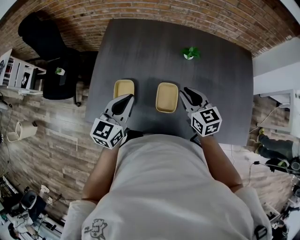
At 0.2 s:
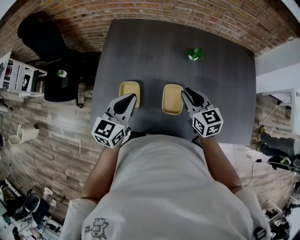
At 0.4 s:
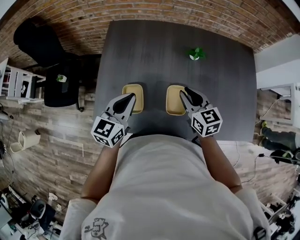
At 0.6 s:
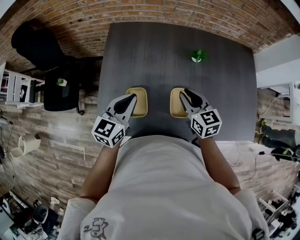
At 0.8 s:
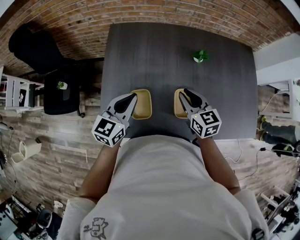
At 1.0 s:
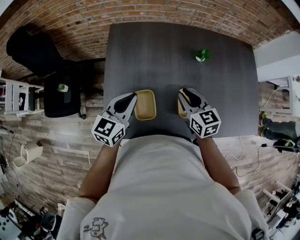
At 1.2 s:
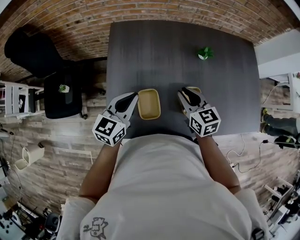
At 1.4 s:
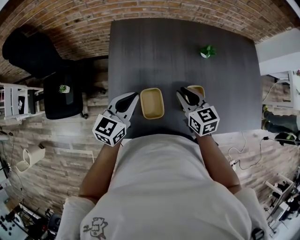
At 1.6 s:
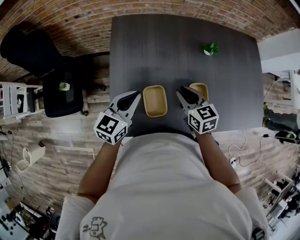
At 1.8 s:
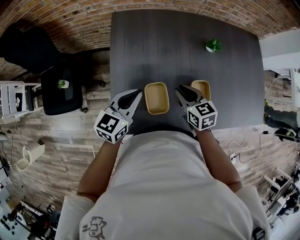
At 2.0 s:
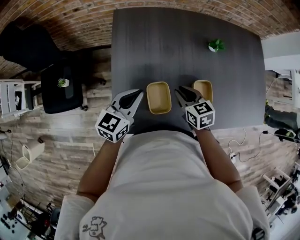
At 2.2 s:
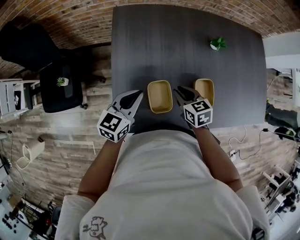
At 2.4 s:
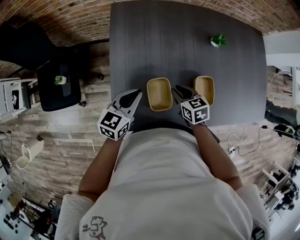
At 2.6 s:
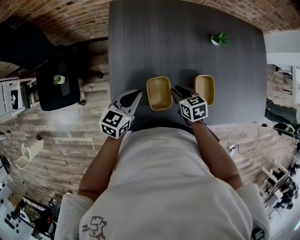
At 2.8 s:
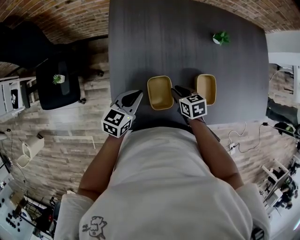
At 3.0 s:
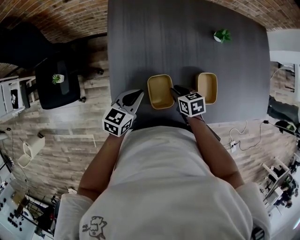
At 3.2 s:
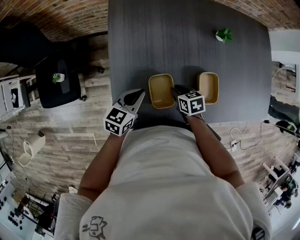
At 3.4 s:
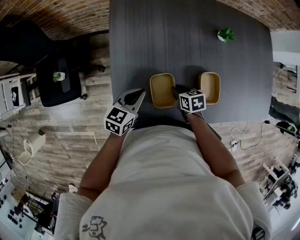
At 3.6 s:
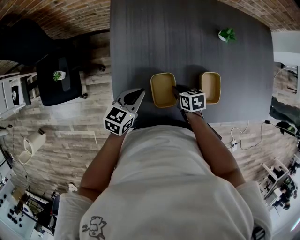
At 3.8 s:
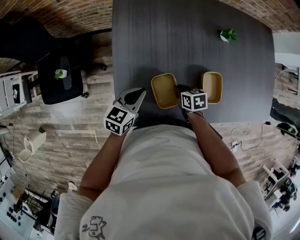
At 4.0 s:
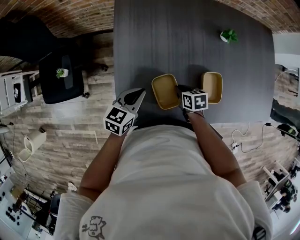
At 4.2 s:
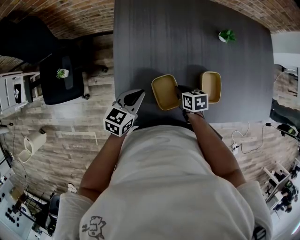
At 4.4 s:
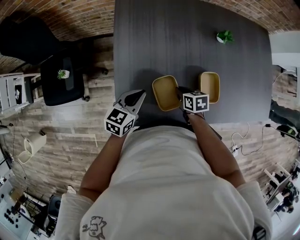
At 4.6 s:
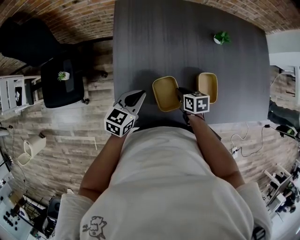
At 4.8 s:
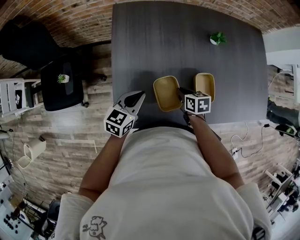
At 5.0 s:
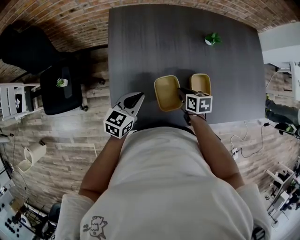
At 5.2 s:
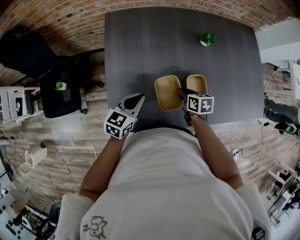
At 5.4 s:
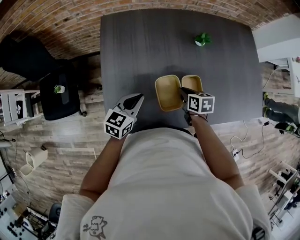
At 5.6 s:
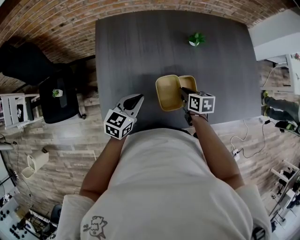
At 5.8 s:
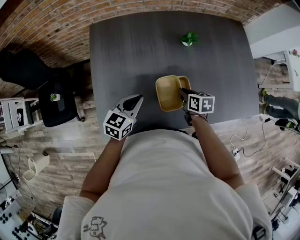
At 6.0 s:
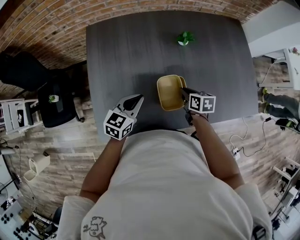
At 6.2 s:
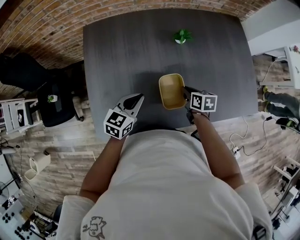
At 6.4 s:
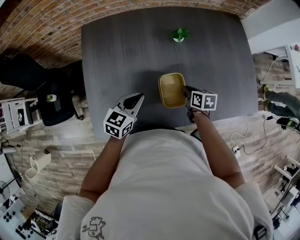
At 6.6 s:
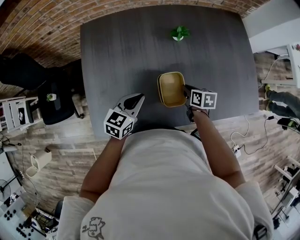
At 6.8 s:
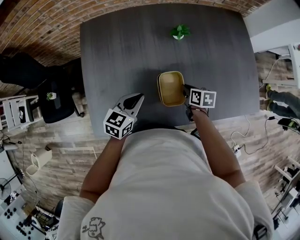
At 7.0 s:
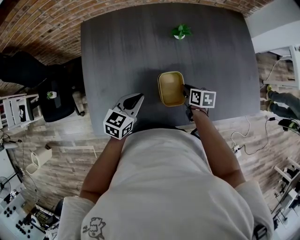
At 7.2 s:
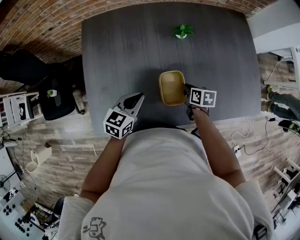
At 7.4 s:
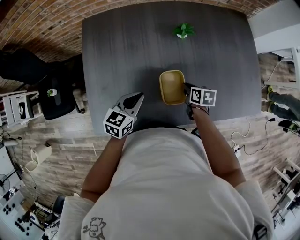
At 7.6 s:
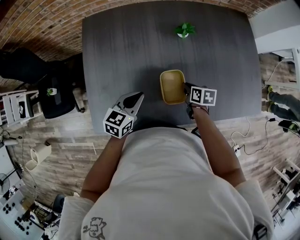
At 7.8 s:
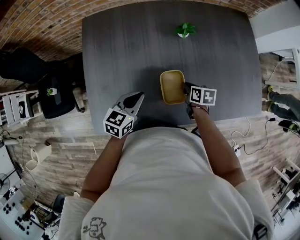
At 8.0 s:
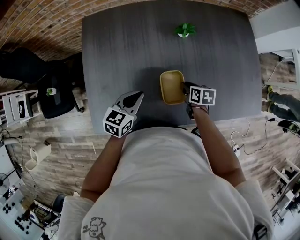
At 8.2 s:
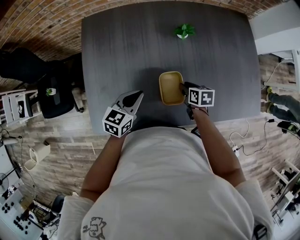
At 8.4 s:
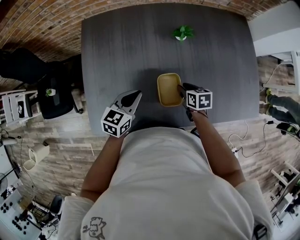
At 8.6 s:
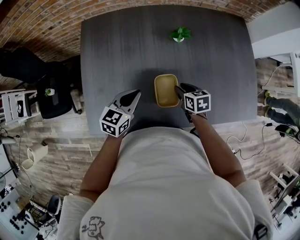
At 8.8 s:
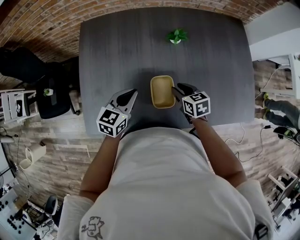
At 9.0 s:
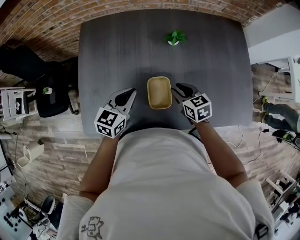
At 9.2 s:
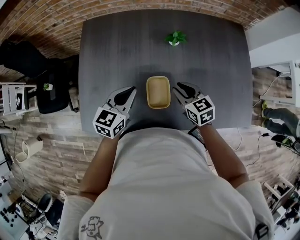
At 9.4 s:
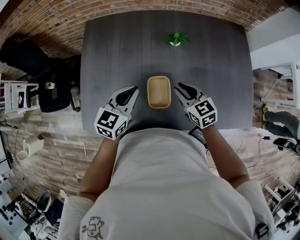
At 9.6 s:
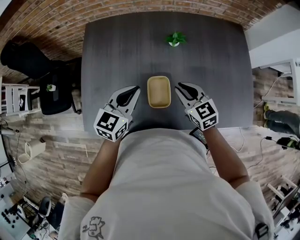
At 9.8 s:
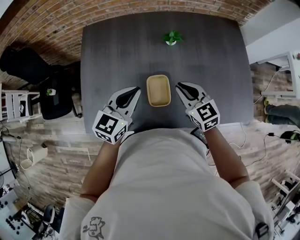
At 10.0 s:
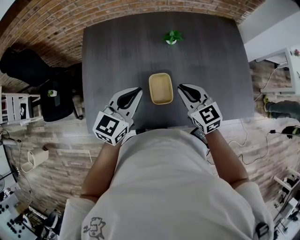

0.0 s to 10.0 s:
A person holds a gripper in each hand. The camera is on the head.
0.0 to 1.4 s: The right gripper shifts about 15 cm to the left. The left gripper shifts roughly 15 cm to the left and forward.
1.4 to 2.8 s: Both grippers move downward, approximately 15 cm. The right gripper swivels roughly 30 degrees.
2.8 to 4.2 s: The grippers stay close to where they were, moving slightly.
4.2 to 5.8 s: The left gripper travels to the right by some 15 cm; the right gripper goes approximately 20 cm to the right and upward.
5.8 to 7.2 s: The right gripper shifts about 10 cm to the right and downward. The left gripper moves to the right, roughly 5 cm.
7.2 to 8.6 s: The right gripper opens up.
8.6 to 10.0 s: The grippers both shift upward by about 15 cm. The right gripper turns by approximately 40 degrees, and closes up.

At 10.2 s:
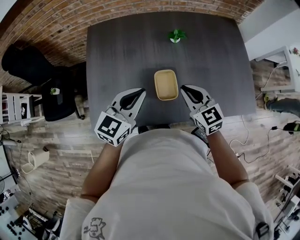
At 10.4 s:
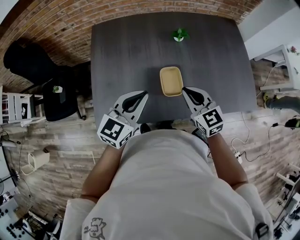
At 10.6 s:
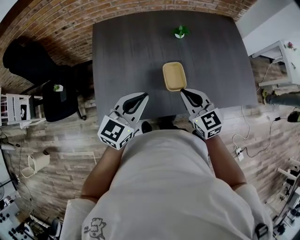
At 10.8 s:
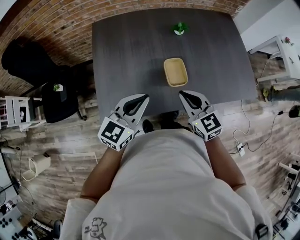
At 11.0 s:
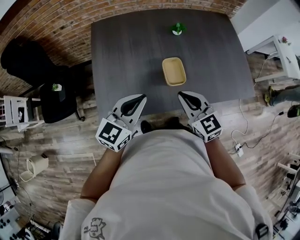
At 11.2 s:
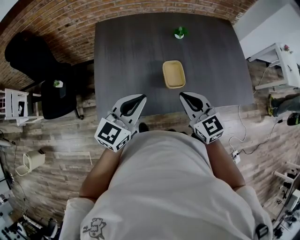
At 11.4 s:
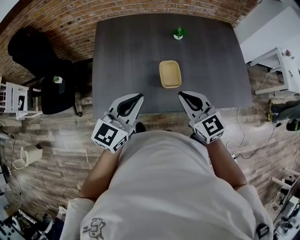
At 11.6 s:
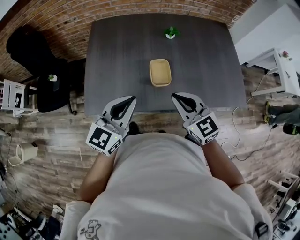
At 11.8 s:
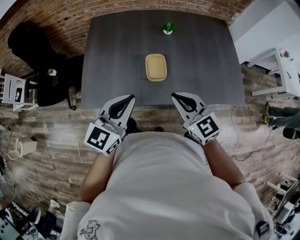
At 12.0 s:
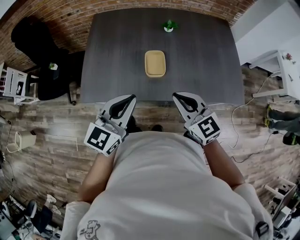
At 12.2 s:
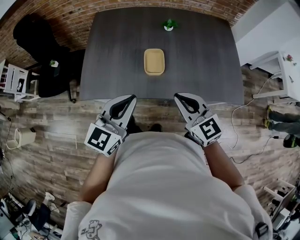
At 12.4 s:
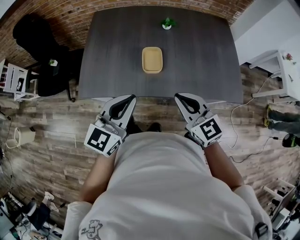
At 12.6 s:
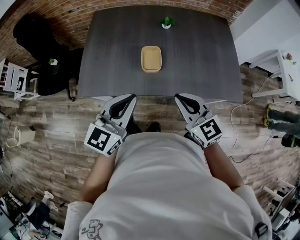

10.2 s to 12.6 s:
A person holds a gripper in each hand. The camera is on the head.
10.2 to 11.4 s: The left gripper shifts about 10 cm backward. The right gripper heads backward and upward, covering approximately 15 cm.
11.4 to 12.6 s: The right gripper heads to the right and backward, covering approximately 15 cm; the left gripper shifts some 15 cm backward and to the right.

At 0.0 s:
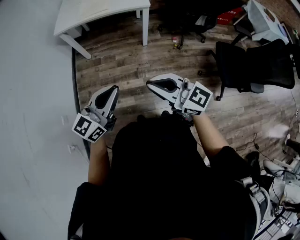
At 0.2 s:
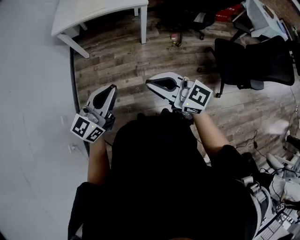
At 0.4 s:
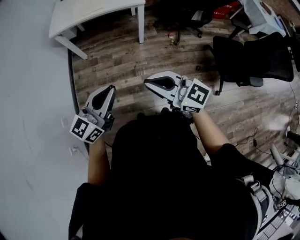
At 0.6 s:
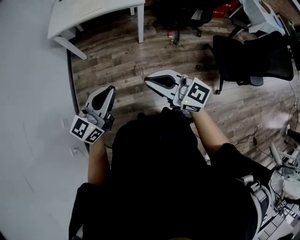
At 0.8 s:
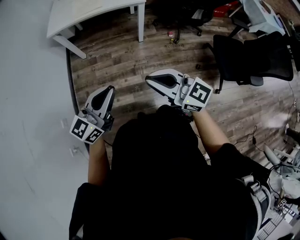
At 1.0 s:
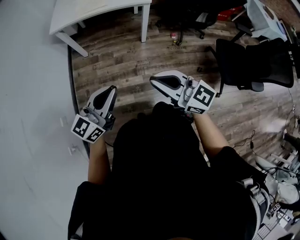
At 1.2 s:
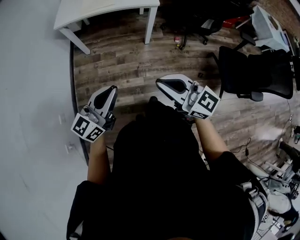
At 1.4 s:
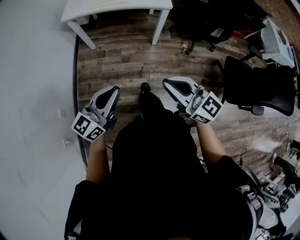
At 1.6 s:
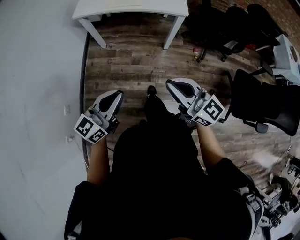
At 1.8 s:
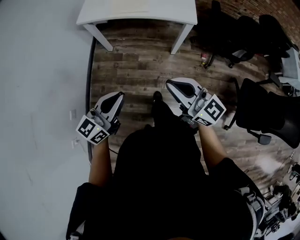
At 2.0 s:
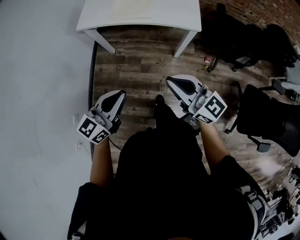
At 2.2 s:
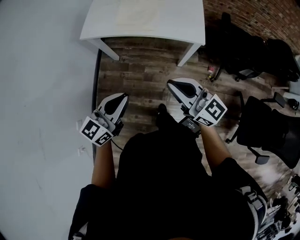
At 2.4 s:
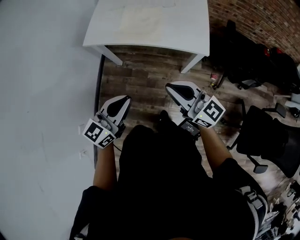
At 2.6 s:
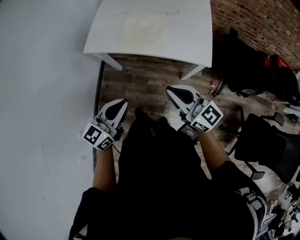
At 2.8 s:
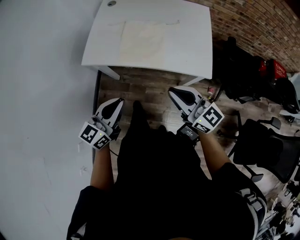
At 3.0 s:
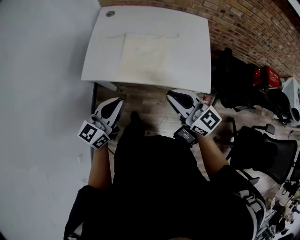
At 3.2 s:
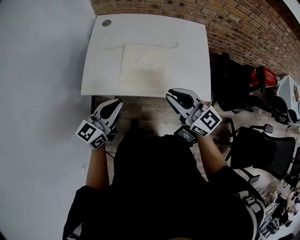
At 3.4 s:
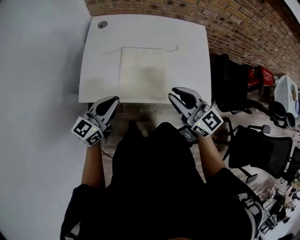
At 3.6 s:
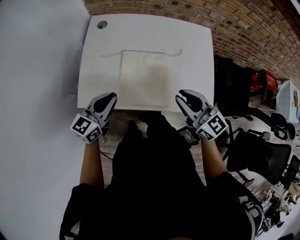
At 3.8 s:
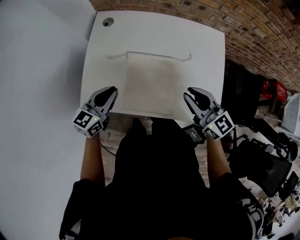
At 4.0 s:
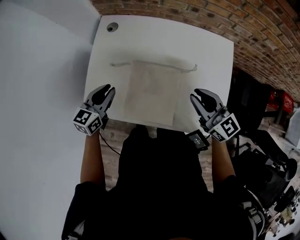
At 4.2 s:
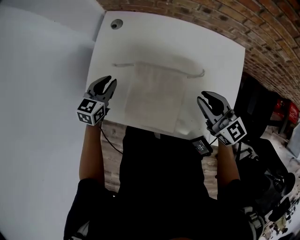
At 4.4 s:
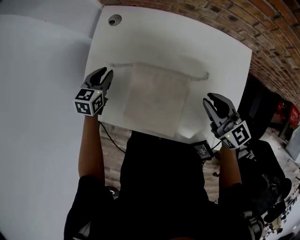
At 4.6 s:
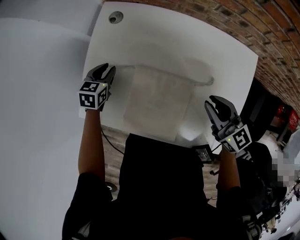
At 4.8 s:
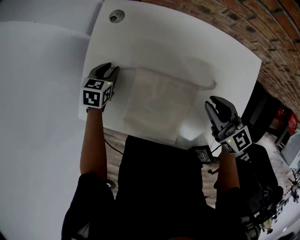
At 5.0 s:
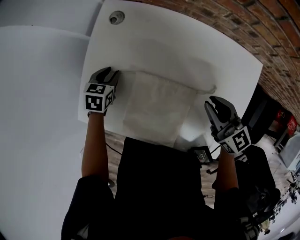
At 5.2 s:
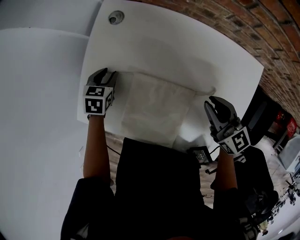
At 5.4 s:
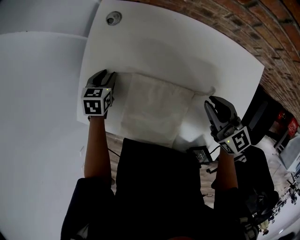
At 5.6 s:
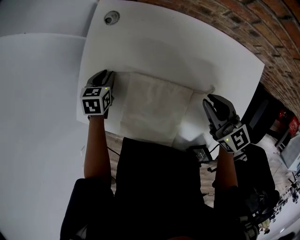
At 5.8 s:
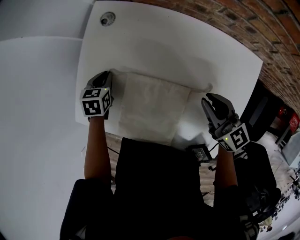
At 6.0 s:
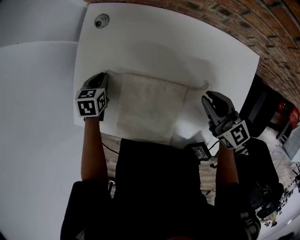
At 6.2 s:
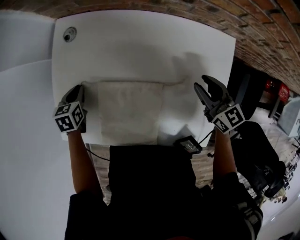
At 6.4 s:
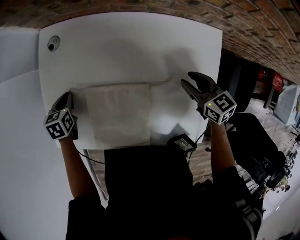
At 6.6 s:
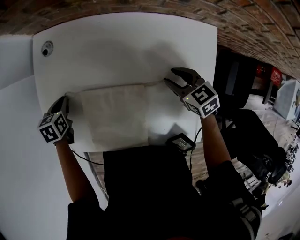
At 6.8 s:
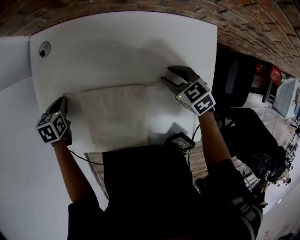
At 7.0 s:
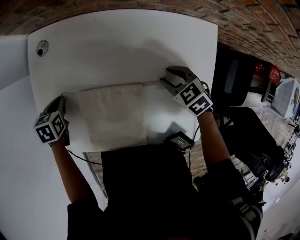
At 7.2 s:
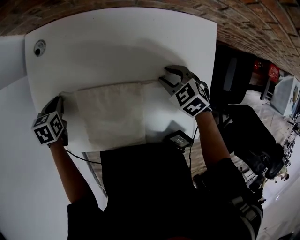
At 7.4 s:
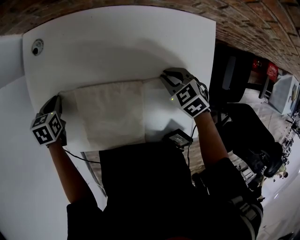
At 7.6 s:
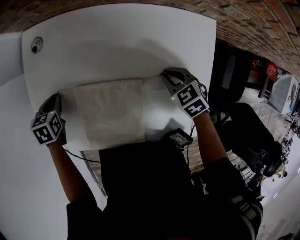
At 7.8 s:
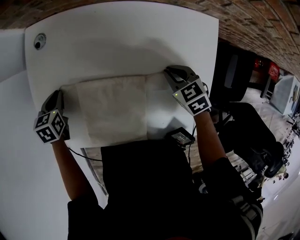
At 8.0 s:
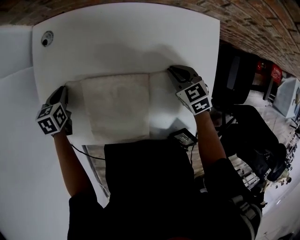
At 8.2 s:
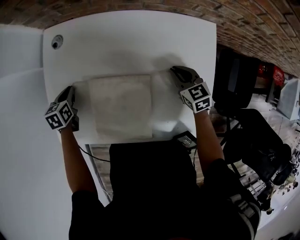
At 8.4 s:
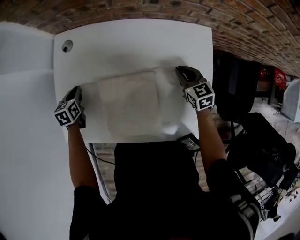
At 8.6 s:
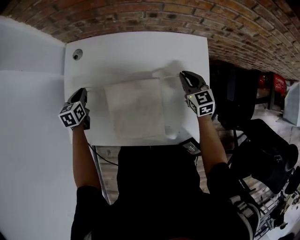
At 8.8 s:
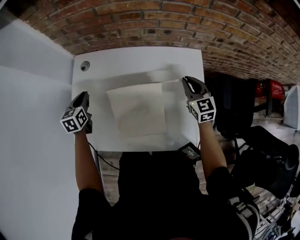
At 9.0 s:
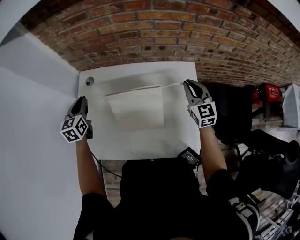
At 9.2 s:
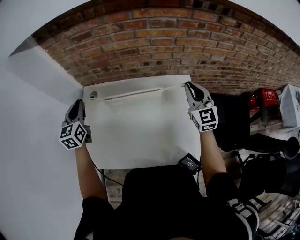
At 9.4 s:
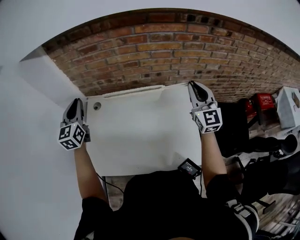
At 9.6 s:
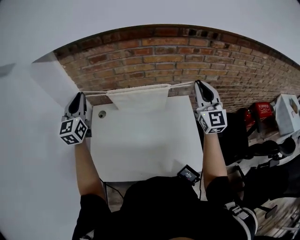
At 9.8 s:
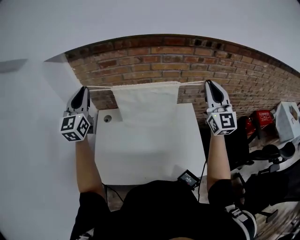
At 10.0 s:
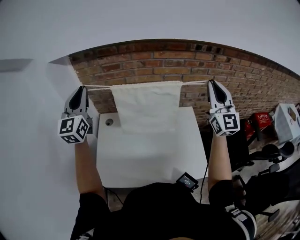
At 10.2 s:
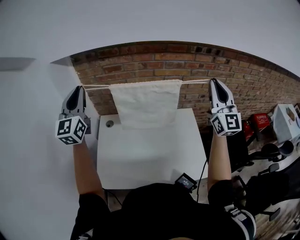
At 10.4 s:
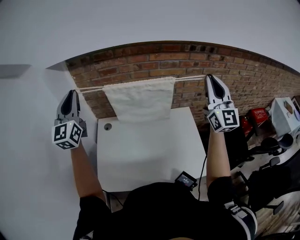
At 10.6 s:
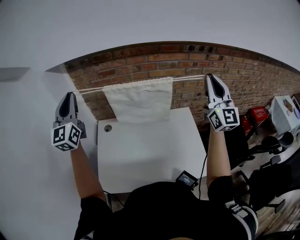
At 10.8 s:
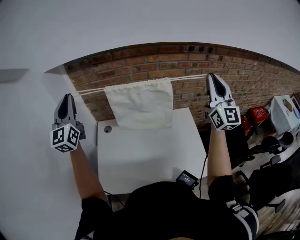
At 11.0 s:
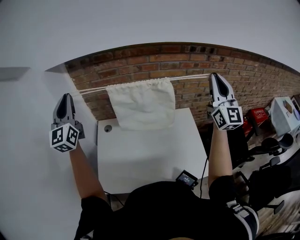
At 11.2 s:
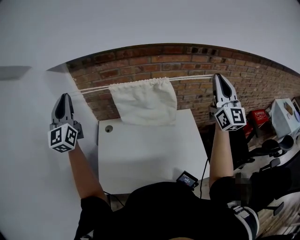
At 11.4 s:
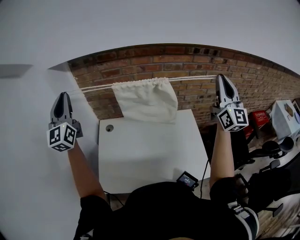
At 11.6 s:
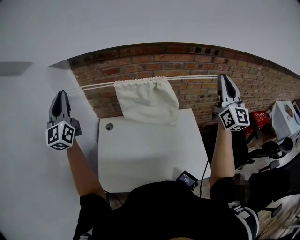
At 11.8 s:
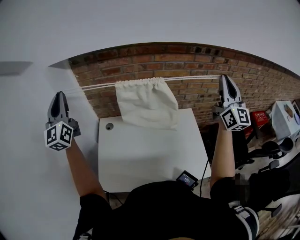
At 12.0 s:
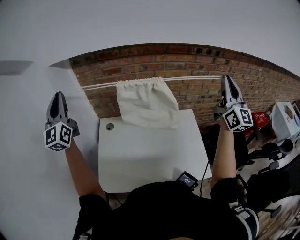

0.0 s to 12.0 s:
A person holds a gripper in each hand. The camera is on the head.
0.0 to 1.6 s: The right gripper moves forward, some 15 cm. Meanwhile the left gripper heads forward and to the left, covering roughly 15 cm.
1.6 to 3.0 s: The pair of grippers is taken forward, about 50 cm.
3.0 to 4.4 s: The right gripper travels forward by approximately 30 cm. The left gripper moves forward and downward, about 40 cm, and tips its fingers downward by some 40 degrees.
4.4 to 6.0 s: The right gripper goes some 10 cm forward and downward. The left gripper heads downward, covering some 5 cm, and swivels about 20 degrees.
6.0 to 7.6 s: The right gripper heads downward, covering about 15 cm, points its fingers some 40 degrees further downward, and opens, then closes once more.
7.6 to 9.0 s: Both grippers travel together upward, approximately 25 cm. The right gripper tips its fingers upward by roughly 50 degrees, while the left gripper angles its fingers upward, by approximately 40 degrees.
9.0 to 10.4 s: The two grippers go approximately 35 cm upward. The right gripper tilts its fingers some 40 degrees upward; the left gripper points its fingers roughly 40 degrees further upward.
10.4 to 12.0 s: The left gripper heads to the left, covering approximately 10 cm.
